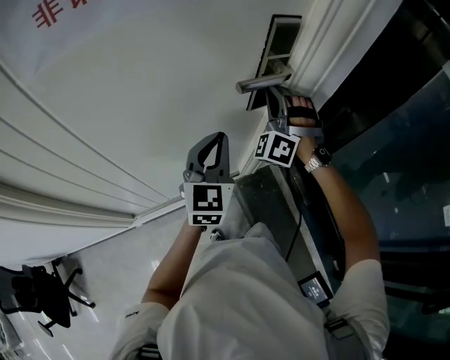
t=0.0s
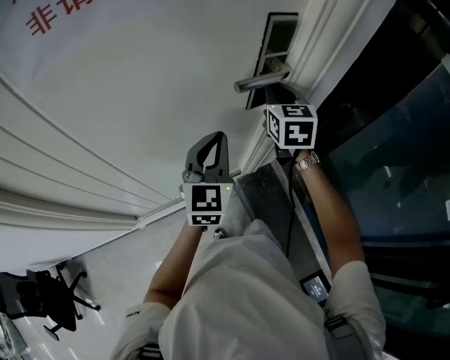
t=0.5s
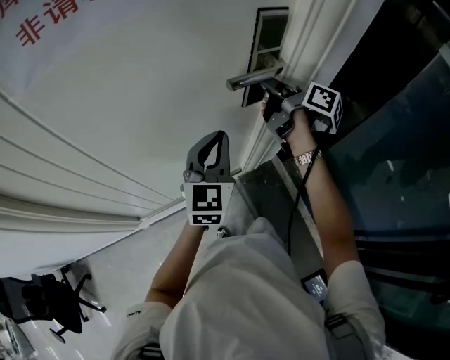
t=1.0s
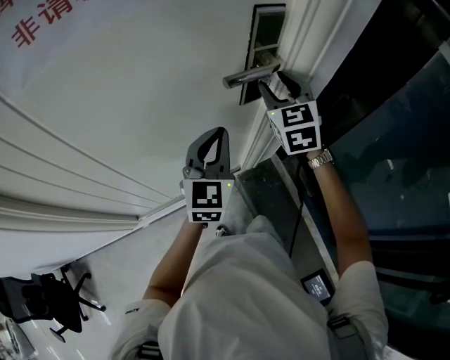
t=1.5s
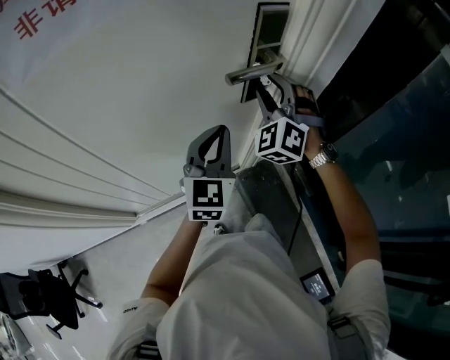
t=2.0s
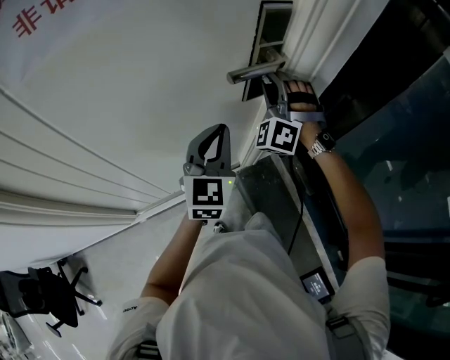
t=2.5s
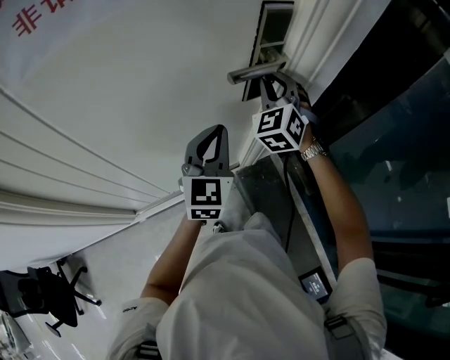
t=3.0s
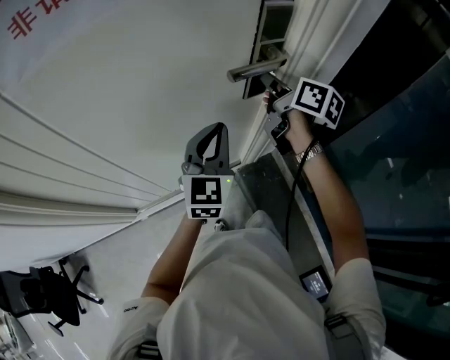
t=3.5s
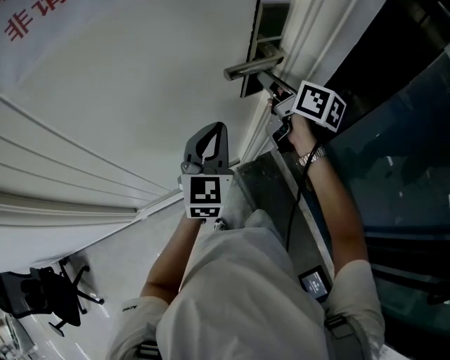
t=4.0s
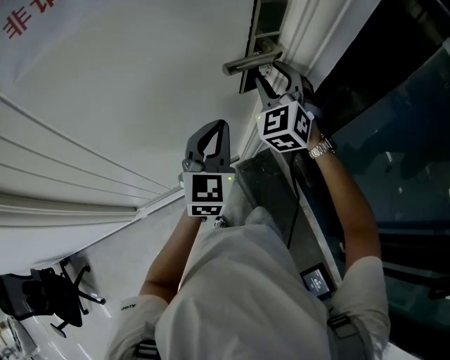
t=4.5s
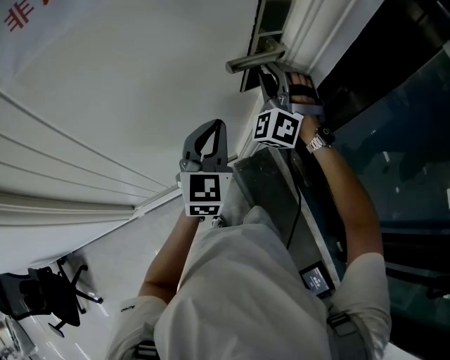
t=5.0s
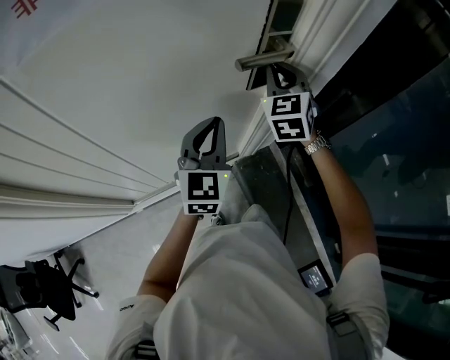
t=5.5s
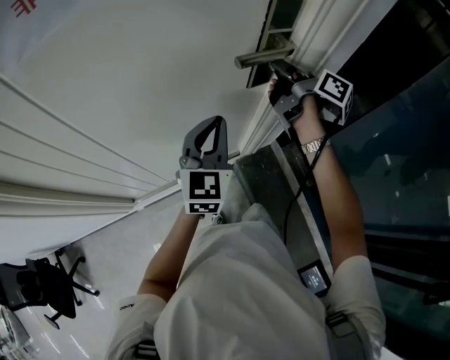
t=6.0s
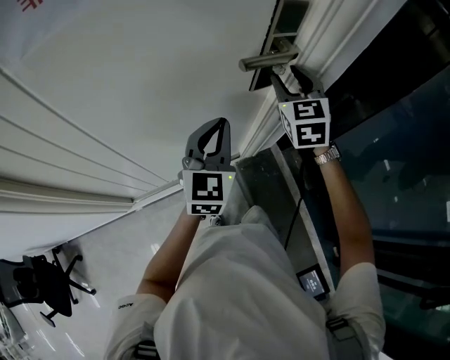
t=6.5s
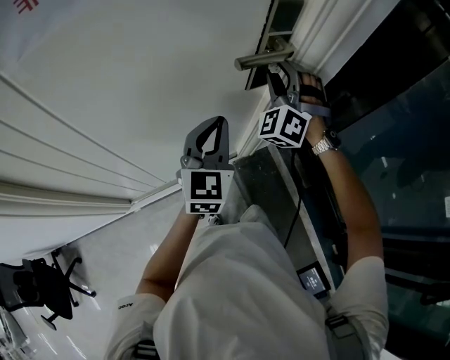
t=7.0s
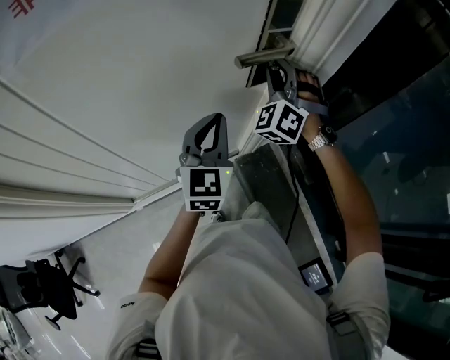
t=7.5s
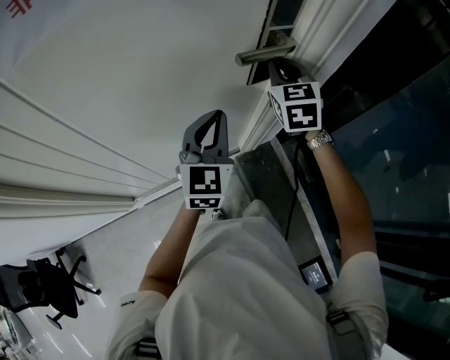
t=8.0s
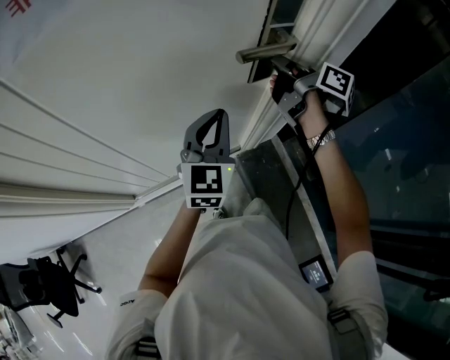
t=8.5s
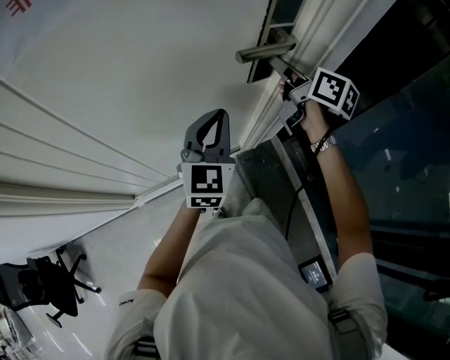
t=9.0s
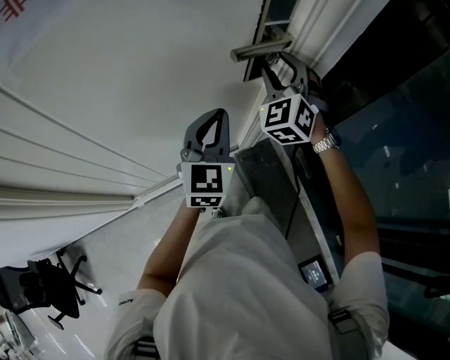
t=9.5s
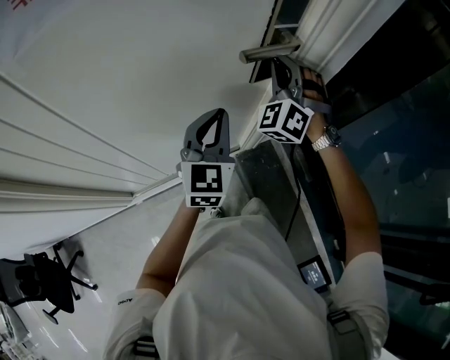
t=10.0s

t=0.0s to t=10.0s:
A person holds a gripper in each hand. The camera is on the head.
t=0.0s to t=2.0s: The right gripper opens its fingers.
t=2.0s to t=4.0s: The right gripper rolls clockwise, seen from behind, by approximately 100 degrees, and closes, then reopens.
t=4.0s to t=6.0s: The right gripper swivels some 30 degrees, and closes.
t=6.0s to t=8.0s: The right gripper twists some 80 degrees counterclockwise, seen from behind, and opens, then closes again.
t=8.0s to t=10.0s: The right gripper rotates around the line of its fingers by roughly 50 degrees, counterclockwise from behind, and opens, then closes once more.

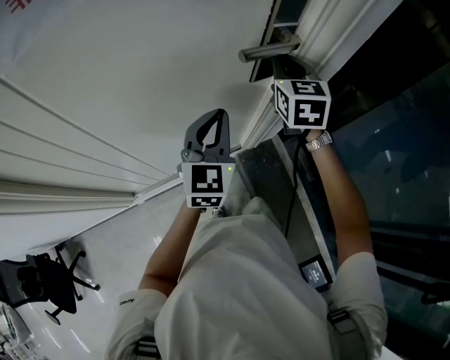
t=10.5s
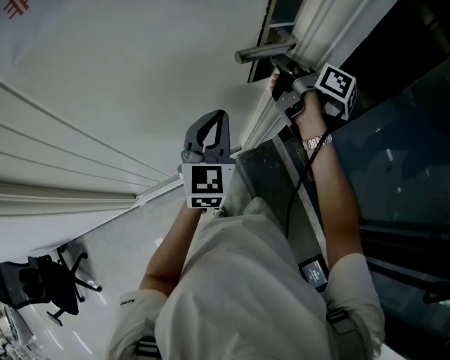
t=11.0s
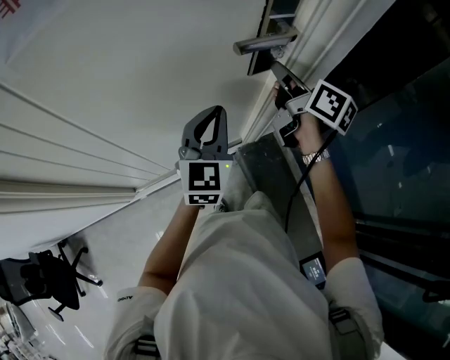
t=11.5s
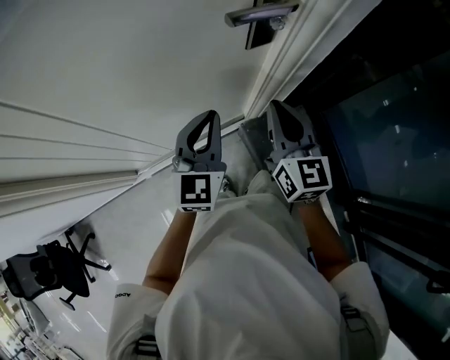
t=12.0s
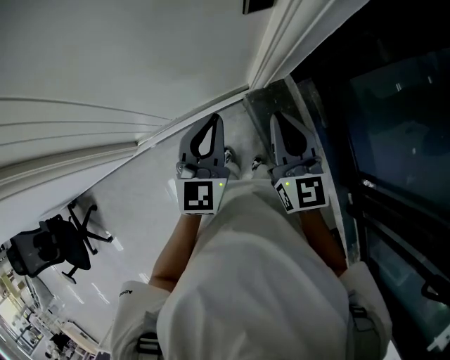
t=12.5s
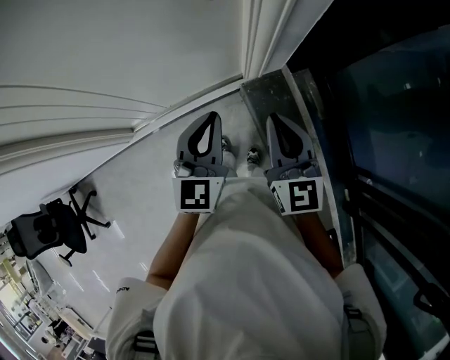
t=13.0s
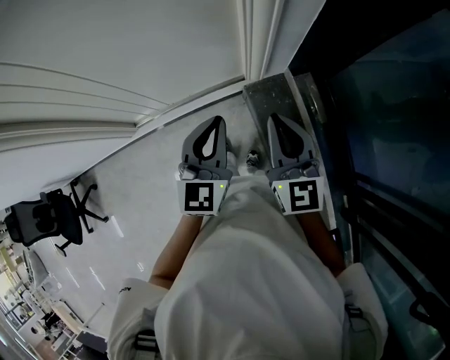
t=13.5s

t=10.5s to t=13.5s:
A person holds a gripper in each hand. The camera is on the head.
t=10.5s to t=12.0s: The right gripper is displaced backward and downward by about 20 cm, and turns by roughly 20 degrees. The left gripper shifts by roughly 5 cm.
t=12.0s to t=13.5s: The grippers both shift backward and to the right by approximately 20 cm.

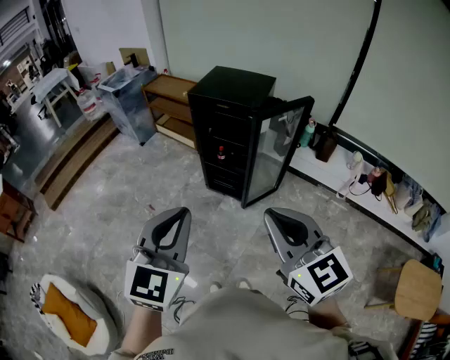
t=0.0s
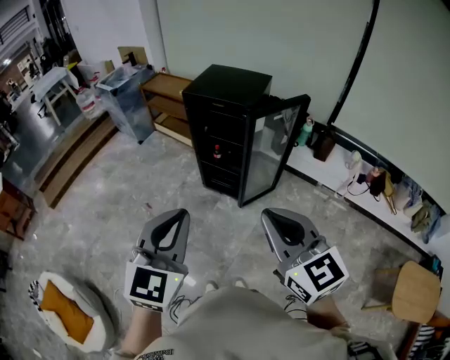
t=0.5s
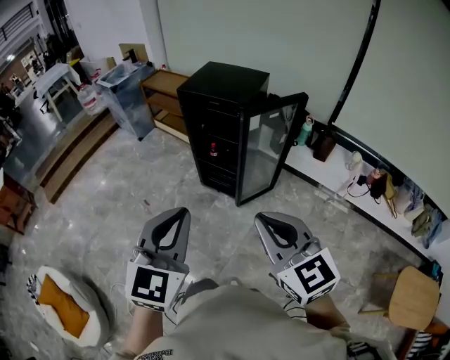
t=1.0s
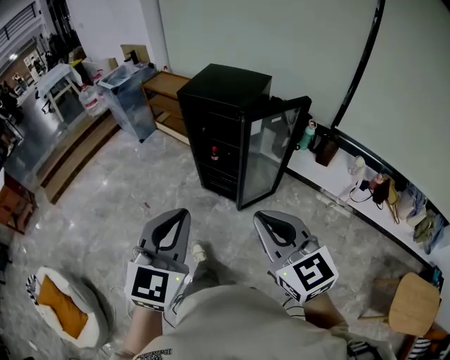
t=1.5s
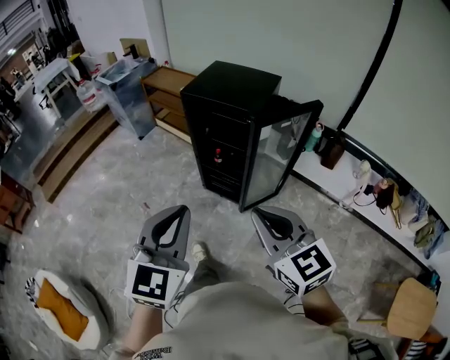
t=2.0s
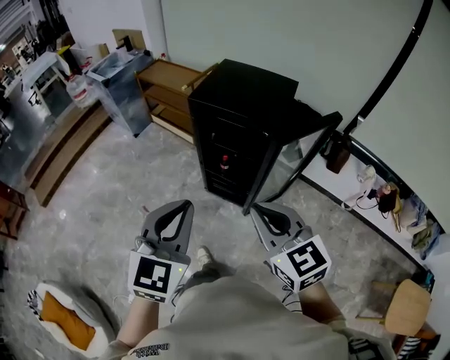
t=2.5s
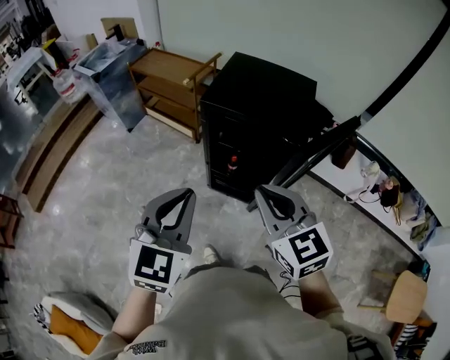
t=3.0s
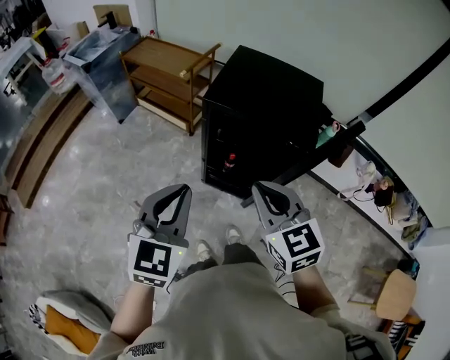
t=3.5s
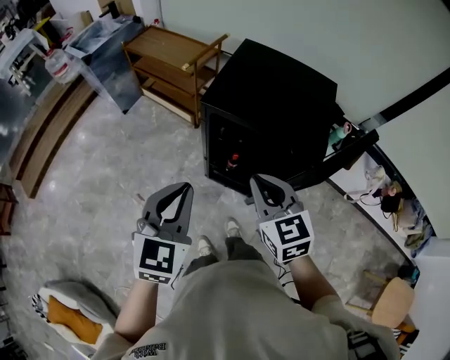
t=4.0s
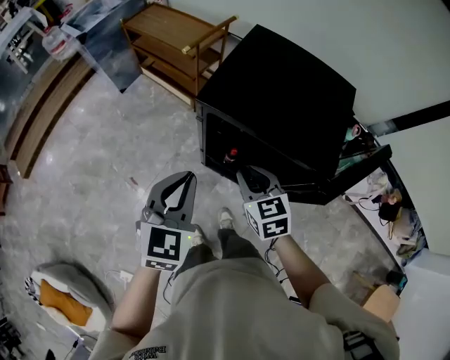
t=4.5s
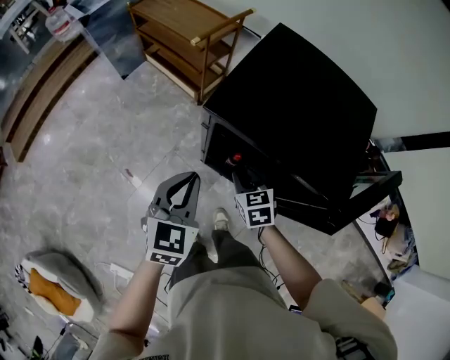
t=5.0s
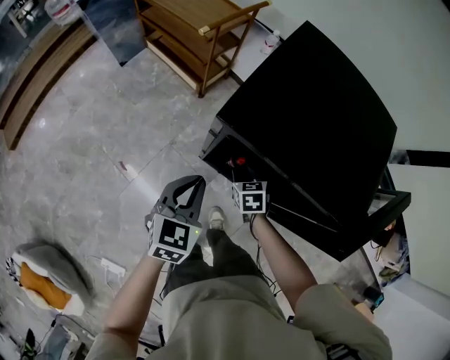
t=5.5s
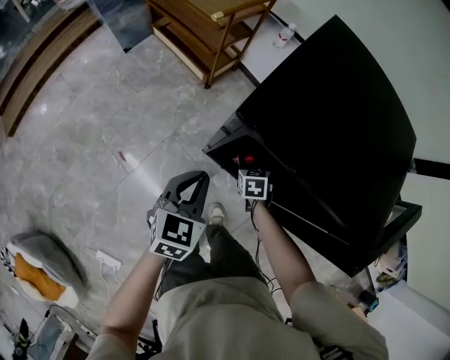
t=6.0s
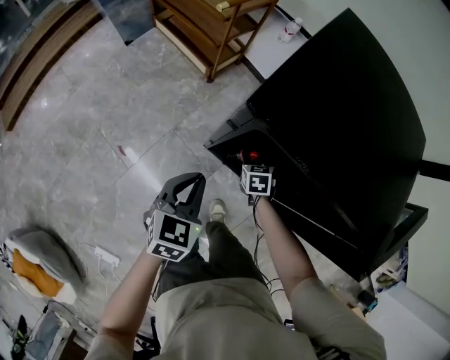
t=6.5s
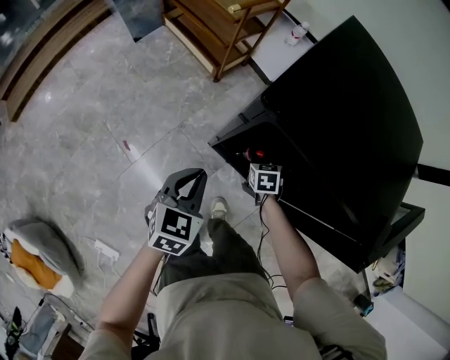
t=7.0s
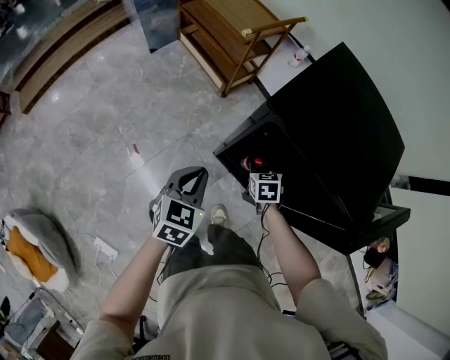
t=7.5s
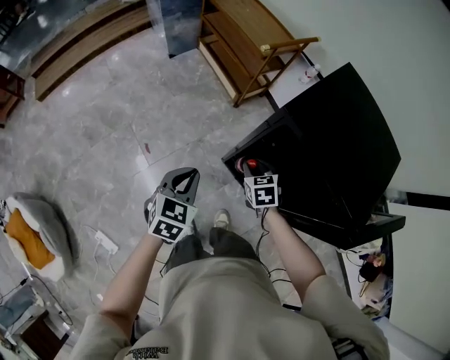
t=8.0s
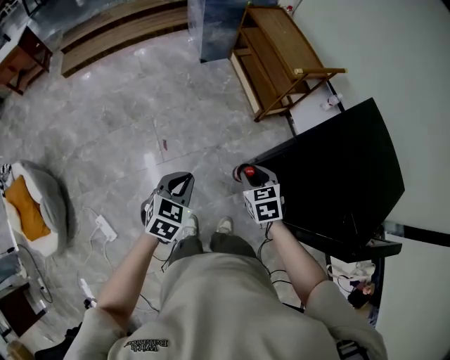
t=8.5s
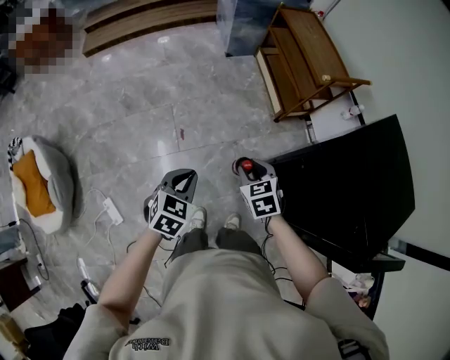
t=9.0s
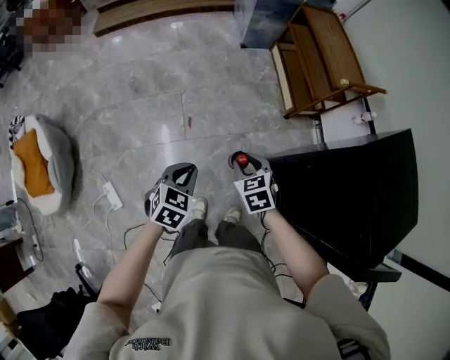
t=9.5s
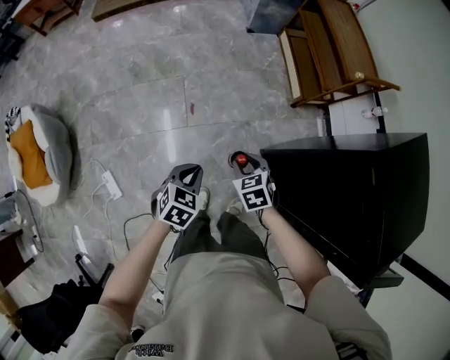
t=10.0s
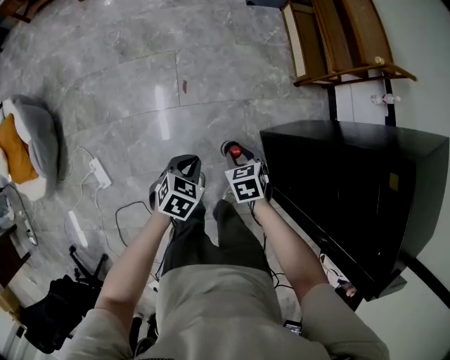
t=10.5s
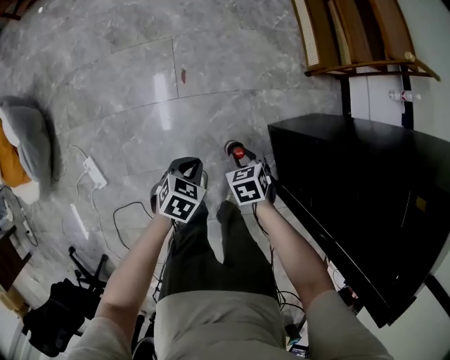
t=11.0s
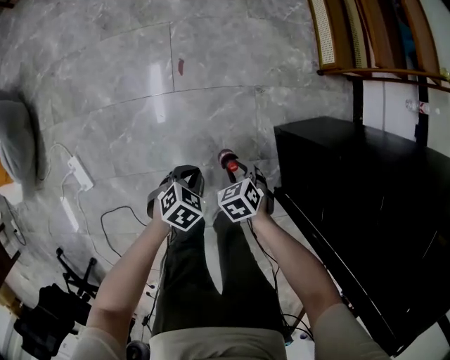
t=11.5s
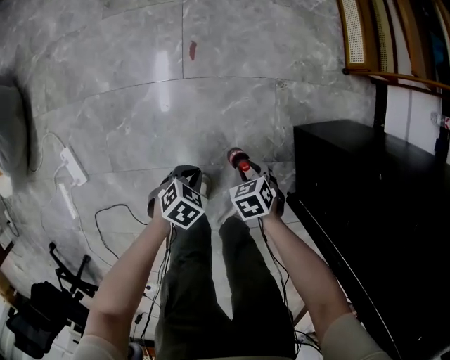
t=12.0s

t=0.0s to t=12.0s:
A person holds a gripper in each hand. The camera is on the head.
t=0.0s to t=2.0s: The right gripper shifts about 15 cm forward and downward. The left gripper is displaced forward and to the right by some 10 cm.
t=2.0s to t=4.0s: Both grippers are carried forward, approximately 40 cm.
t=4.0s to t=6.0s: The left gripper goes approximately 30 cm downward and forward; the right gripper travels downward and forward by approximately 50 cm, tips its fingers downward by roughly 30 degrees, and opens.
t=6.0s to t=8.0s: The right gripper moves upward, to the left and backward, approximately 20 cm, and changes its angle by approximately 20 degrees. The left gripper heads to the left, backward and upward, covering approximately 15 cm.
t=8.0s to t=10.0s: The right gripper travels upward and back again, approximately 10 cm each way, and changes its angle by roughly 30 degrees. Meanwhile the left gripper moves some 25 cm, and turns by roughly 20 degrees.
t=10.0s to t=12.0s: The grippers both shift downward by approximately 50 cm. The right gripper turns by some 20 degrees. The left gripper swivels roughly 20 degrees.

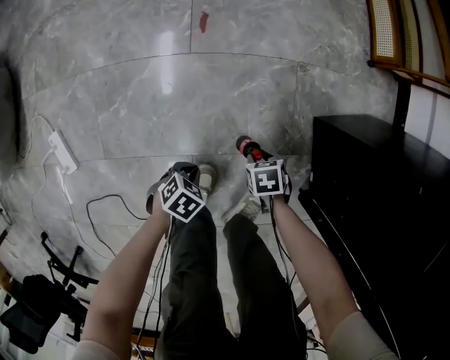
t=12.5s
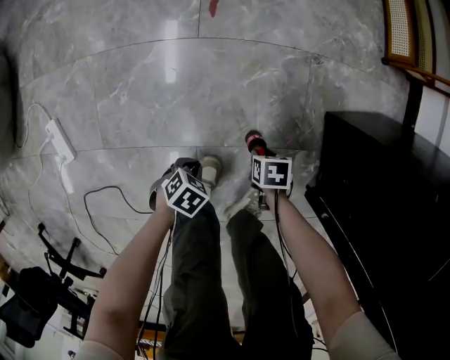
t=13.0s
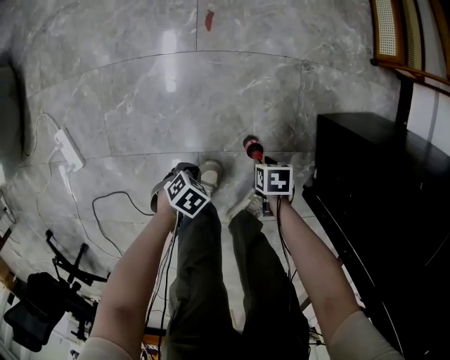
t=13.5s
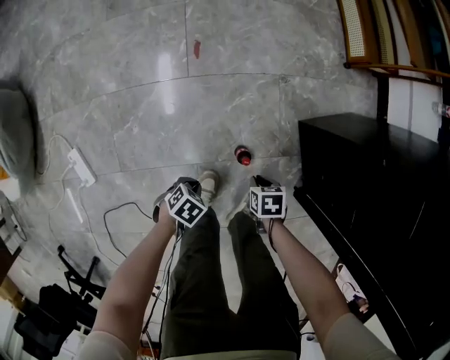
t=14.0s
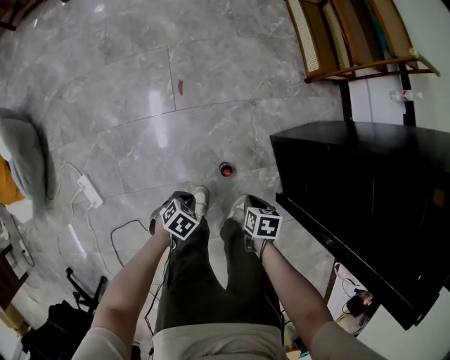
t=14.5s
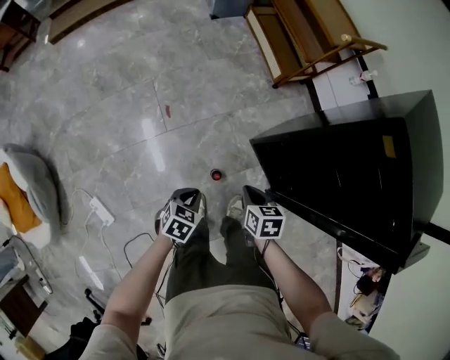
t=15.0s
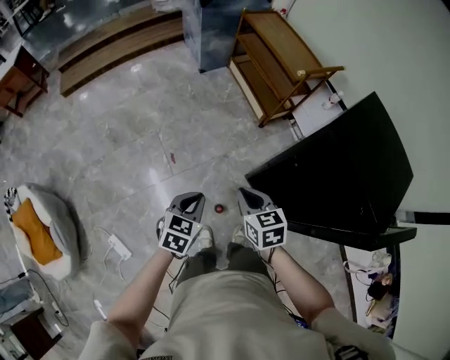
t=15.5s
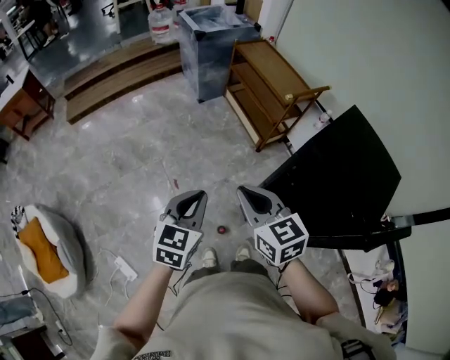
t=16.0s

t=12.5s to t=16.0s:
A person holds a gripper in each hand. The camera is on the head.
t=12.5s to t=14.5s: Both grippers move upward, approximately 25 cm. The right gripper turns by roughly 30 degrees, and closes.
t=14.5s to t=16.0s: The two grippers go some 60 cm upward. The left gripper angles its fingers upward, by about 40 degrees; the right gripper angles its fingers upward, by approximately 50 degrees.
